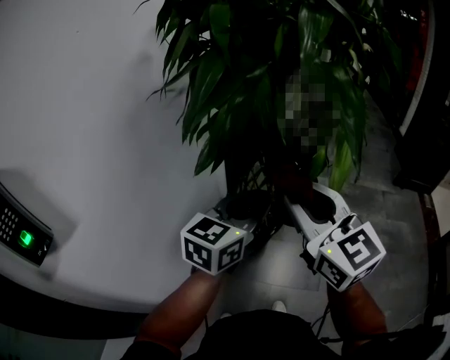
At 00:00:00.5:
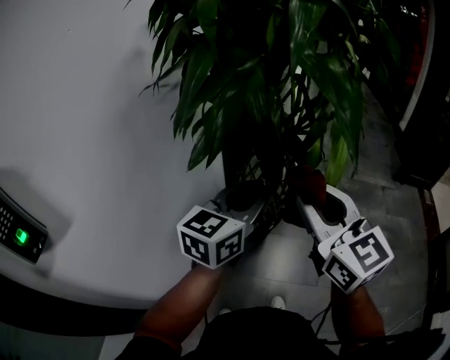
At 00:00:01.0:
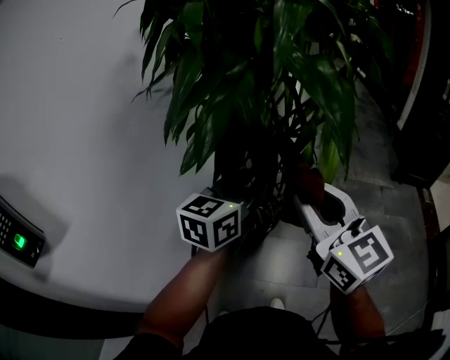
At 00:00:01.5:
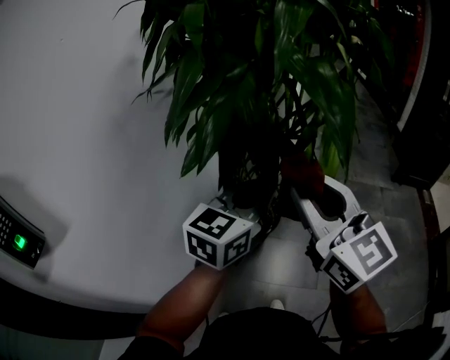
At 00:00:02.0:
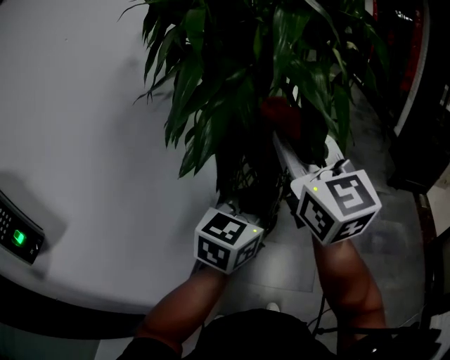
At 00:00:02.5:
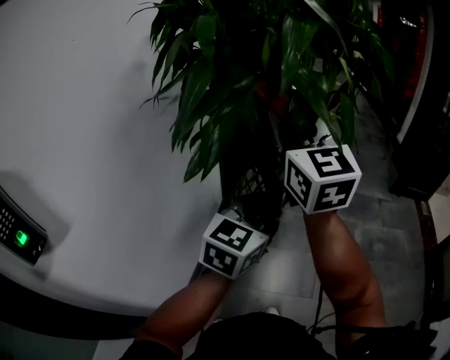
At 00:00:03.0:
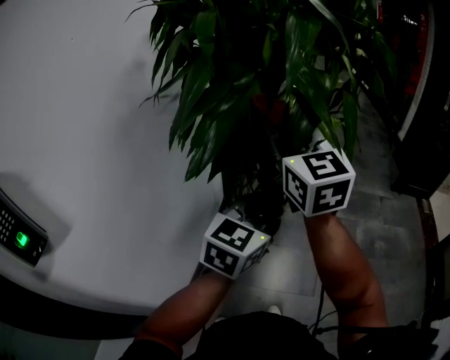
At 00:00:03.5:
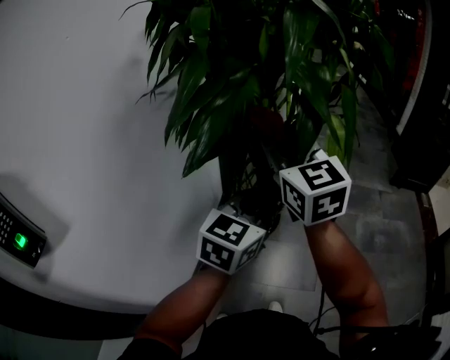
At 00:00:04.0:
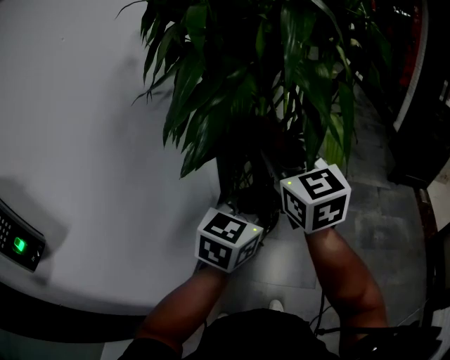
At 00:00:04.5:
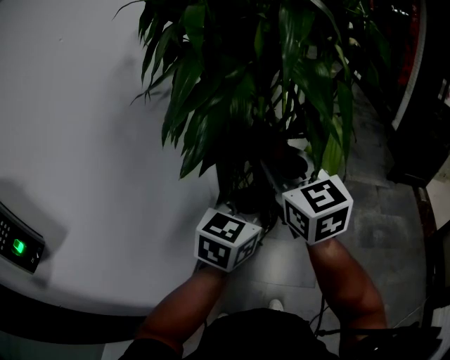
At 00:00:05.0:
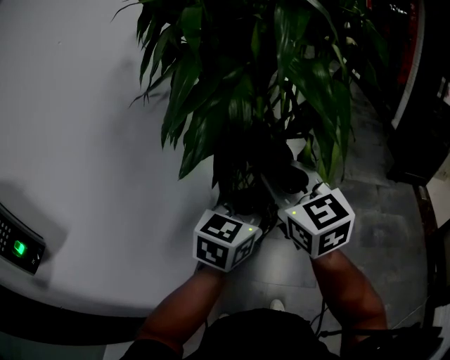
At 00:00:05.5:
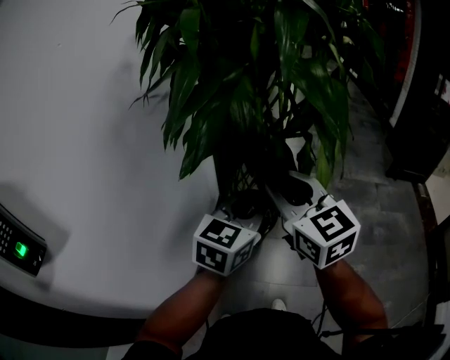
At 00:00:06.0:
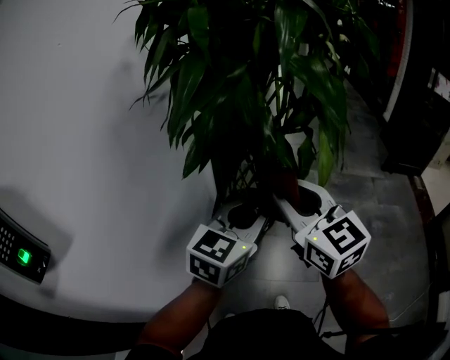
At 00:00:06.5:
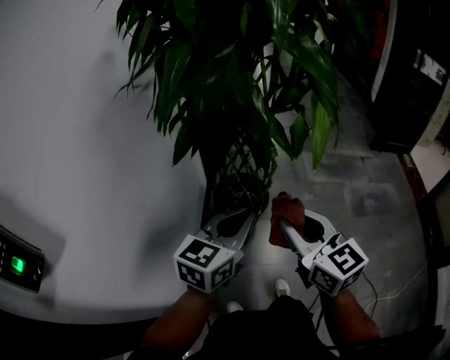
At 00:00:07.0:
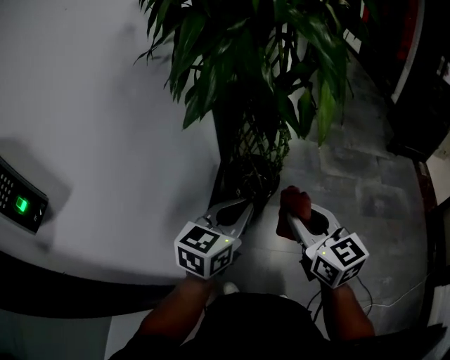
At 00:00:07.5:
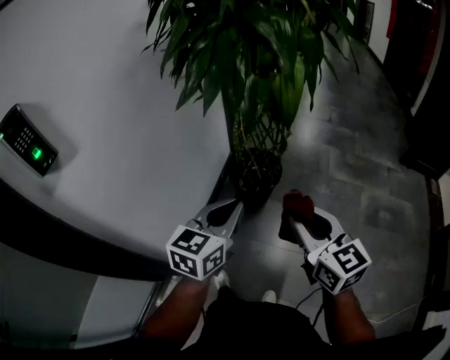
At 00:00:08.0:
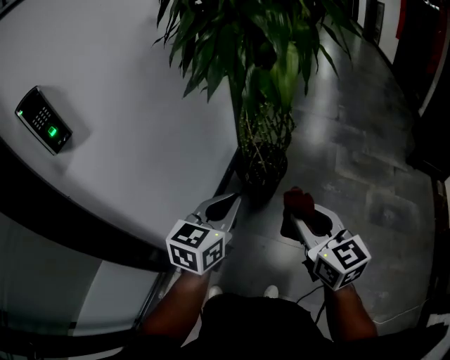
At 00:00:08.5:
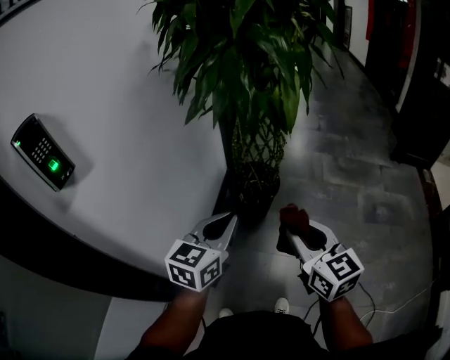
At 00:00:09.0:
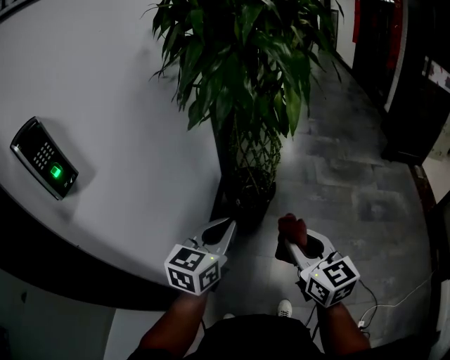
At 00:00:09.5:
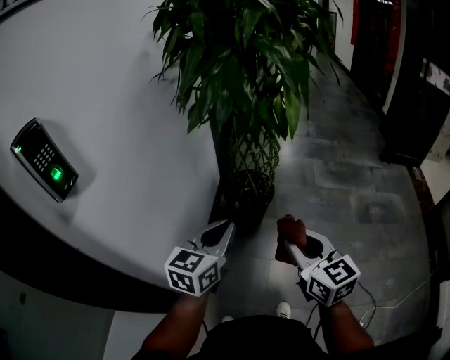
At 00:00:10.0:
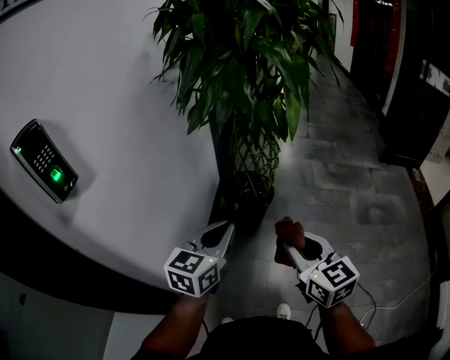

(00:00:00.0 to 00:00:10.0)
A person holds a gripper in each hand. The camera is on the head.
00:00:00.0 - 00:00:02.0: The left gripper heads to the right, covering roughly 5 cm; the right gripper goes some 10 cm upward and forward.
00:00:02.0 - 00:00:04.0: The right gripper is displaced downward by about 5 cm.
00:00:04.0 - 00:00:06.0: The right gripper shifts about 10 cm backward. Meanwhile the left gripper ends up approximately 5 cm from where it was.
00:00:06.0 - 00:00:08.0: The left gripper is displaced backward and downward by some 20 cm, and changes its angle by about 20 degrees. Meanwhile the right gripper heads backward, to the right and downward, covering roughly 30 cm.
00:00:08.0 - 00:00:10.0: Both grippers travel together to the left, approximately 10 cm.

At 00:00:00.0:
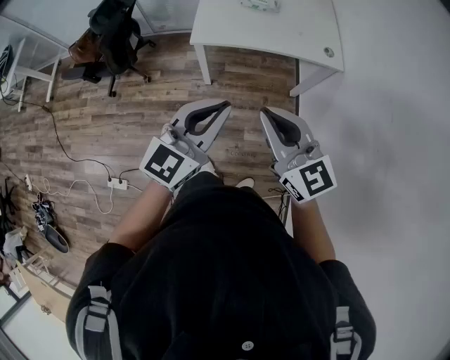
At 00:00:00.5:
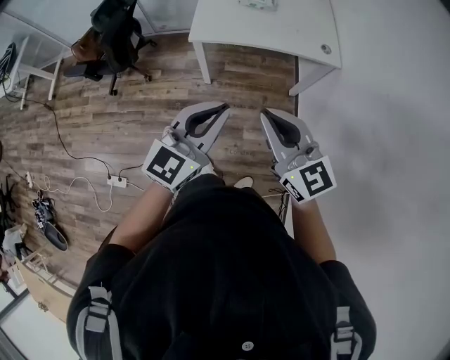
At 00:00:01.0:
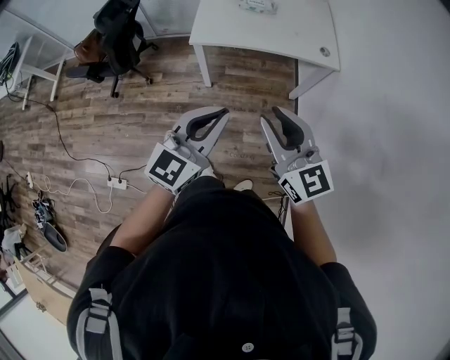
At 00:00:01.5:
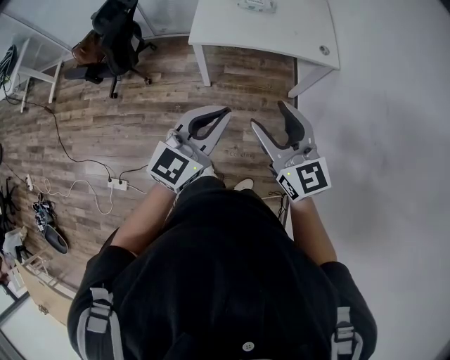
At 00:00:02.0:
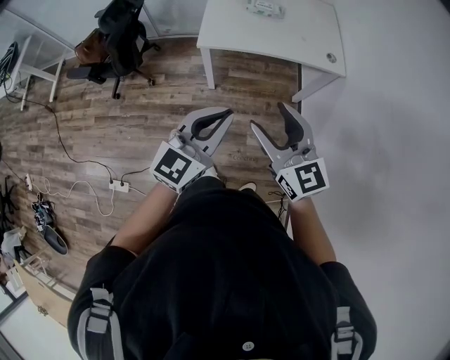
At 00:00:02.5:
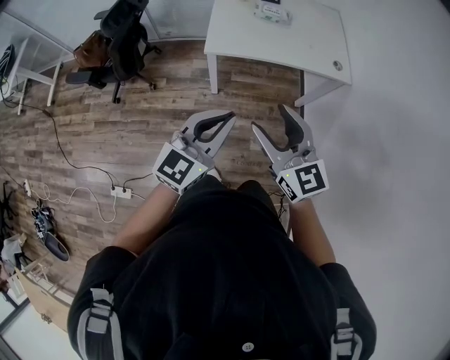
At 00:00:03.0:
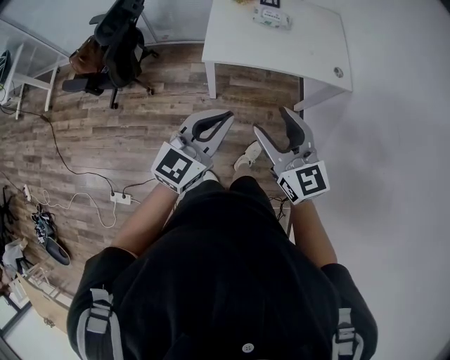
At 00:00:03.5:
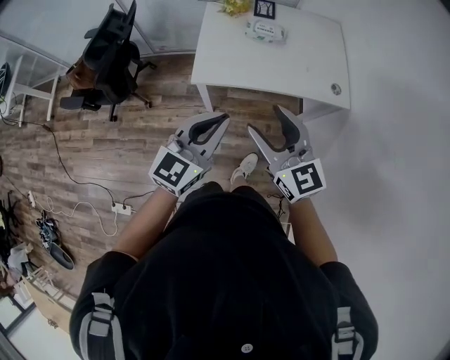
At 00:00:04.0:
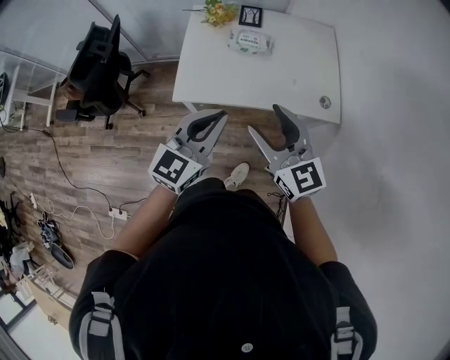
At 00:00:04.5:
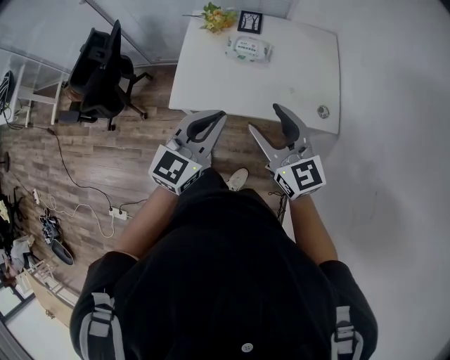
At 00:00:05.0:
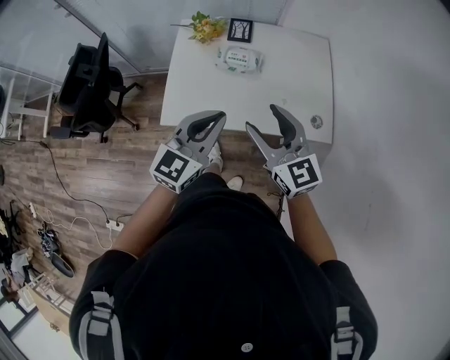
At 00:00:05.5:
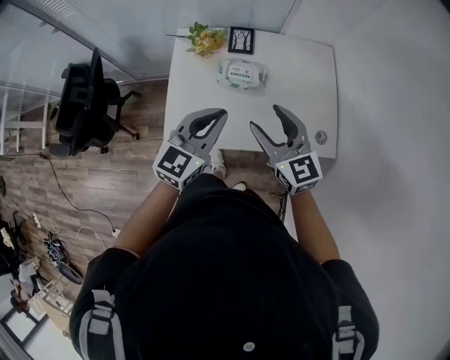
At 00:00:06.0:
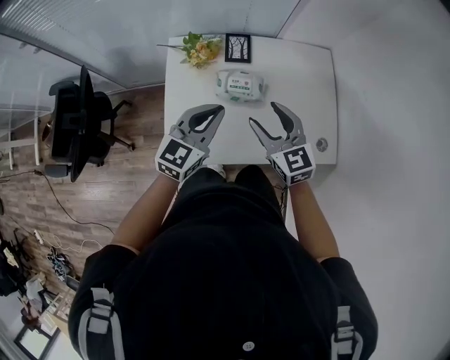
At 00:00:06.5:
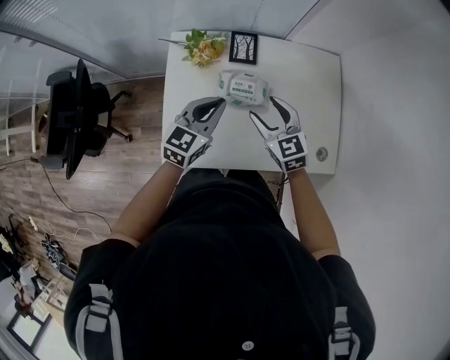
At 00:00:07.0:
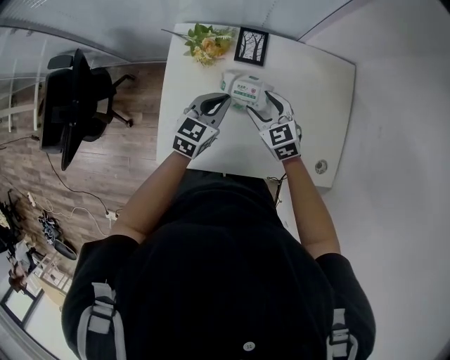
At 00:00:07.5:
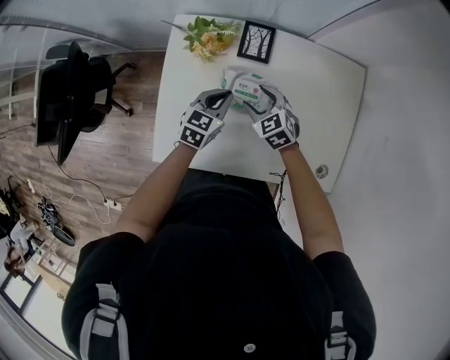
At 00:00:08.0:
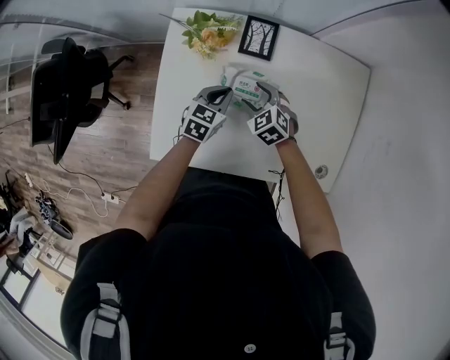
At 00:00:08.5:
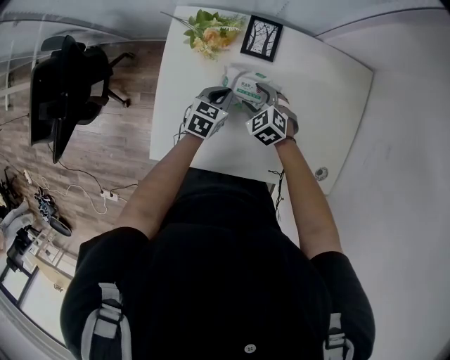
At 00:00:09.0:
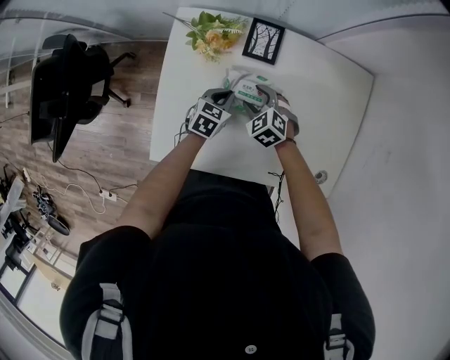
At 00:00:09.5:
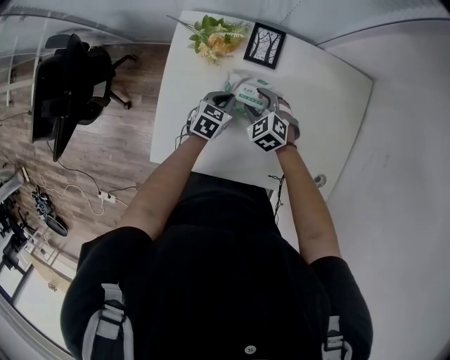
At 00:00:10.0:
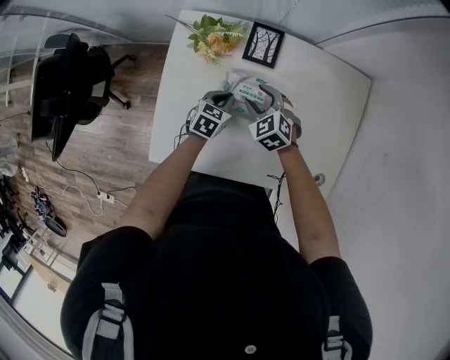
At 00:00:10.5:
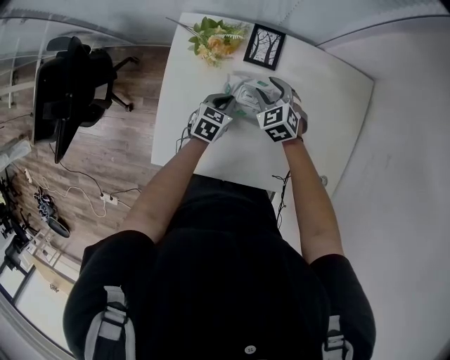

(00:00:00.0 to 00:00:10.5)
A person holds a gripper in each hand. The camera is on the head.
00:00:00.0 - 00:00:02.0: The right gripper opens its fingers.
00:00:02.0 - 00:00:04.0: Both grippers move forward, about 30 cm.
00:00:04.0 - 00:00:06.5: The right gripper travels forward and downward by roughly 40 cm, and turns by approximately 20 degrees, while the left gripper heads forward, covering about 40 cm.
00:00:06.5 - 00:00:08.5: Both grippers travel together downward, approximately 25 cm. The left gripper swivels roughly 30 degrees, while the right gripper turns by approximately 30 degrees.
00:00:08.5 - 00:00:10.5: The right gripper moves forward, some 5 cm.

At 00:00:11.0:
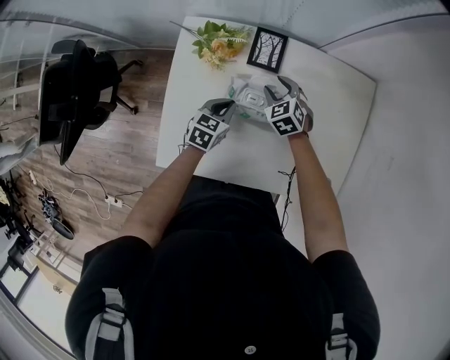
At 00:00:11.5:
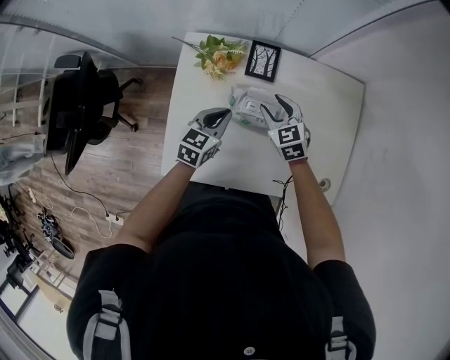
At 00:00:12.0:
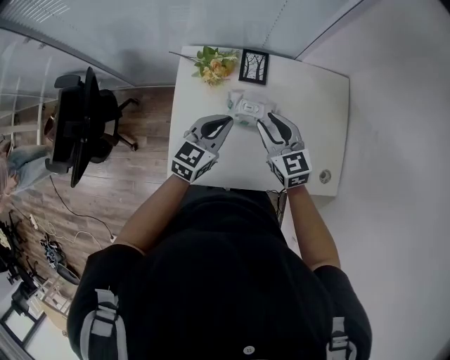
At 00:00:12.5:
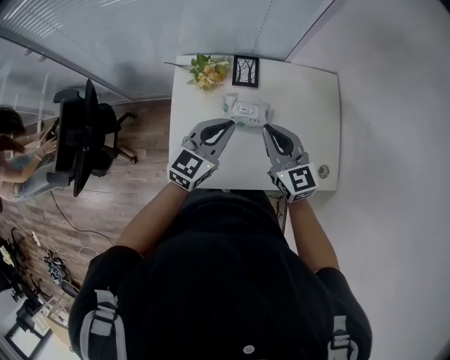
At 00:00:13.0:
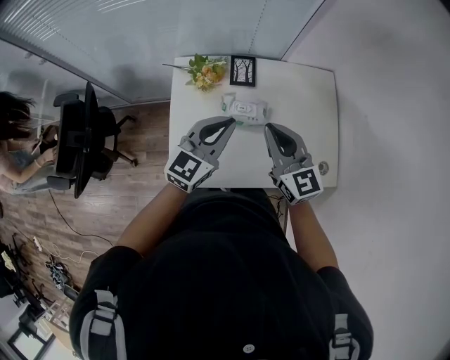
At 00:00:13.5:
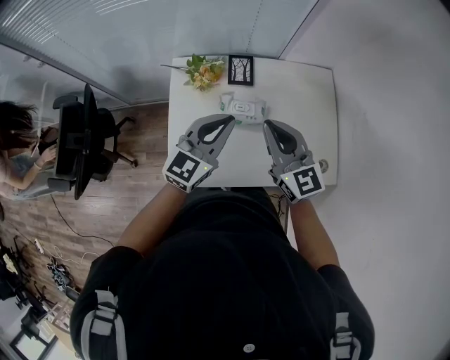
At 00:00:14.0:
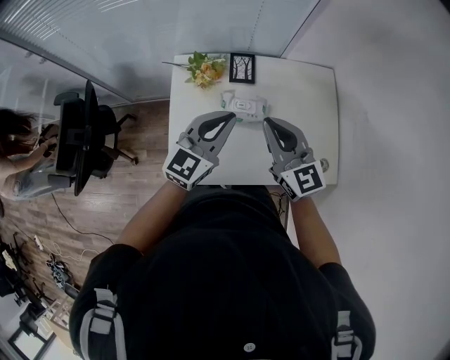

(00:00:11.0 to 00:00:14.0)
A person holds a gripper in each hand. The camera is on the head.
00:00:11.0 - 00:00:12.5: The left gripper shifts some 25 cm upward, and tilts its fingers approximately 30 degrees upward. Meanwhile the right gripper is displaced upward and backward by some 35 cm, points its fingers some 40 degrees further upward, and closes.
00:00:12.5 - 00:00:14.0: Both grippers travel together upward, approximately 5 cm.

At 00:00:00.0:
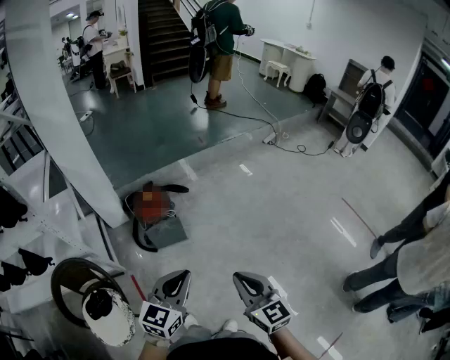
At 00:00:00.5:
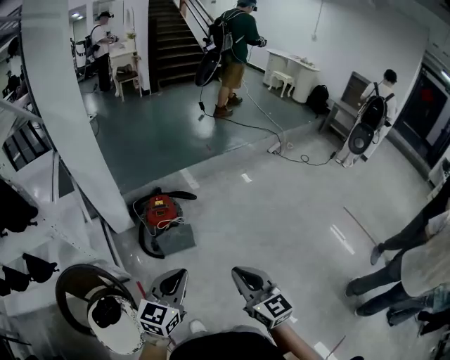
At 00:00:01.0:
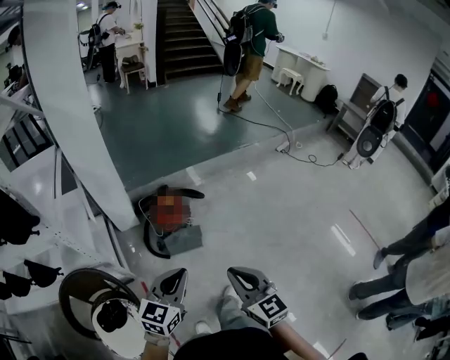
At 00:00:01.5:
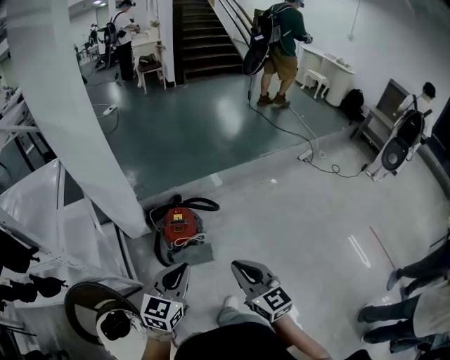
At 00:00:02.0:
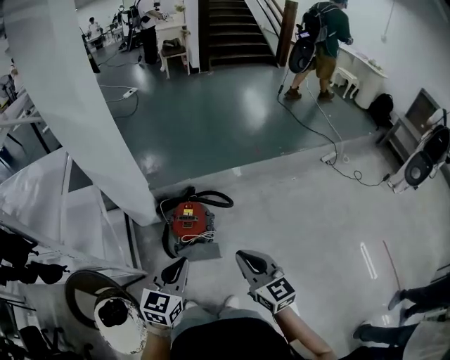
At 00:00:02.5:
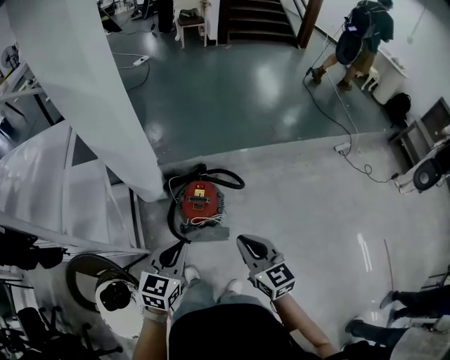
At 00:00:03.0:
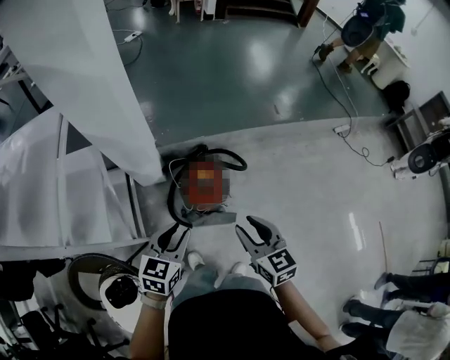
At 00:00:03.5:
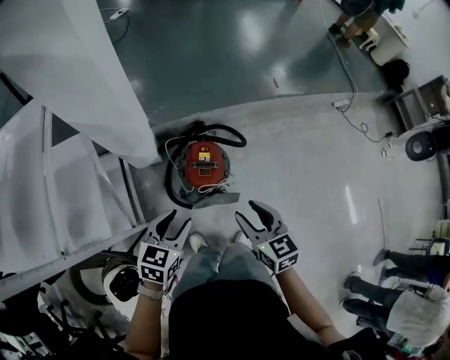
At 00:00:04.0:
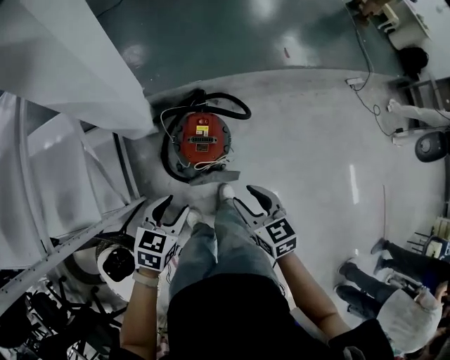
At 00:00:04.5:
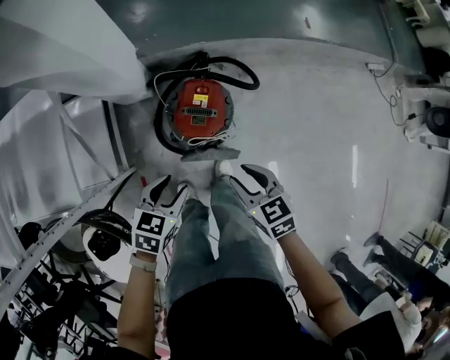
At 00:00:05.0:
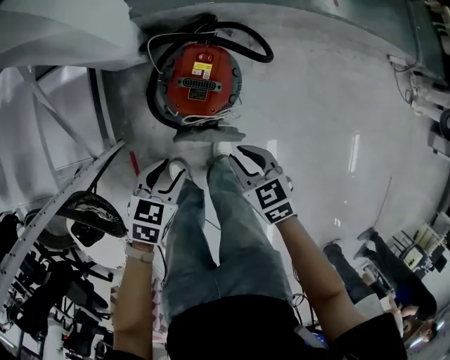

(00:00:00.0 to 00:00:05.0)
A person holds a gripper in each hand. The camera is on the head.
00:00:00.0 - 00:00:02.5: The two grippers travel together, forward and to the left, some 50 cm. The right gripper rotates roughly 20 degrees; the left gripper turns by approximately 20 degrees.
00:00:02.5 - 00:00:05.0: Both grippers travel together downward, approximately 40 cm. The left gripper swivels approximately 30 degrees, and opens; the right gripper tilts its fingers about 30 degrees downward.
